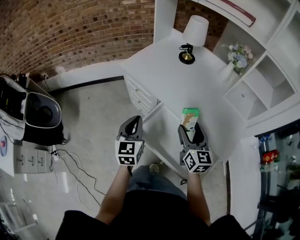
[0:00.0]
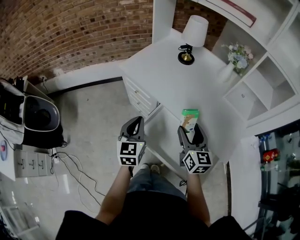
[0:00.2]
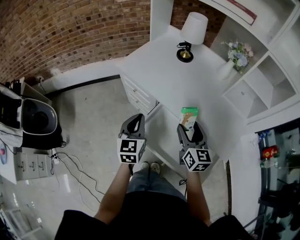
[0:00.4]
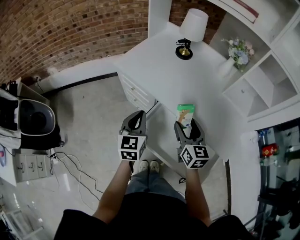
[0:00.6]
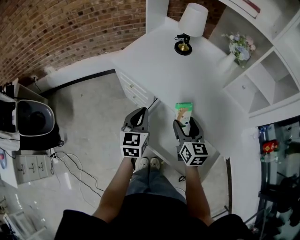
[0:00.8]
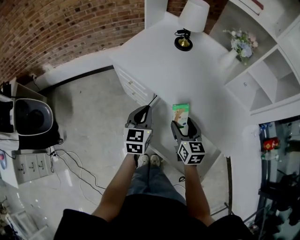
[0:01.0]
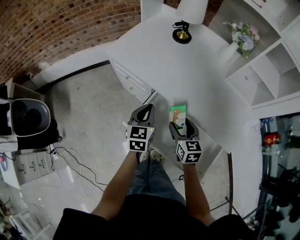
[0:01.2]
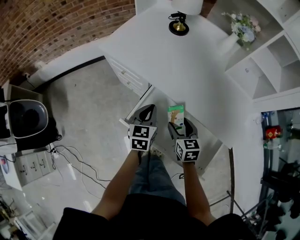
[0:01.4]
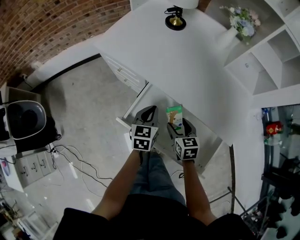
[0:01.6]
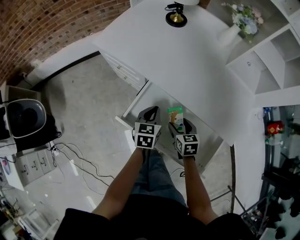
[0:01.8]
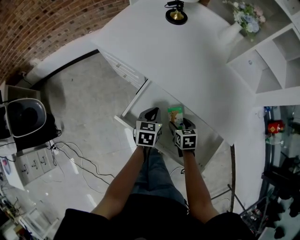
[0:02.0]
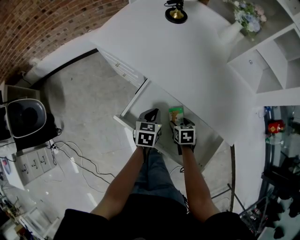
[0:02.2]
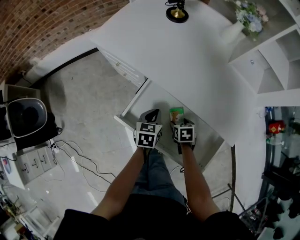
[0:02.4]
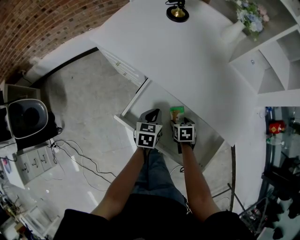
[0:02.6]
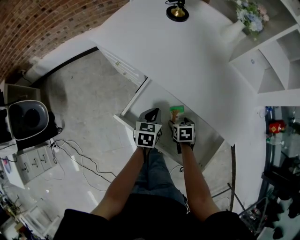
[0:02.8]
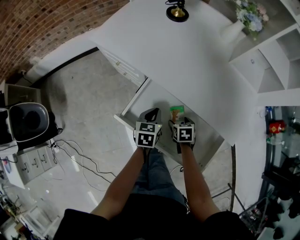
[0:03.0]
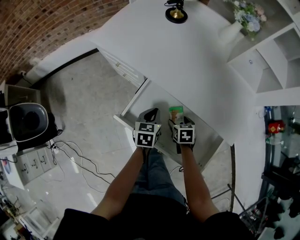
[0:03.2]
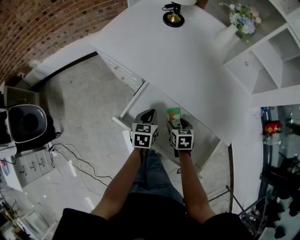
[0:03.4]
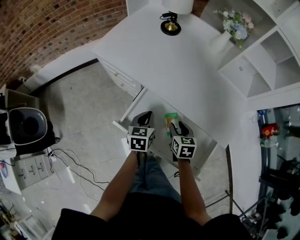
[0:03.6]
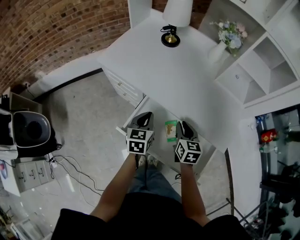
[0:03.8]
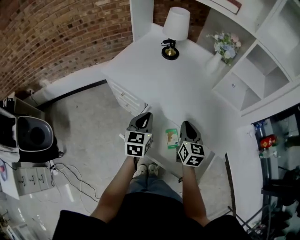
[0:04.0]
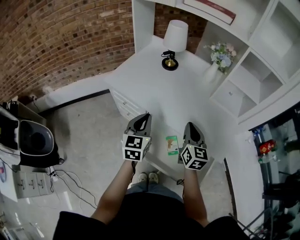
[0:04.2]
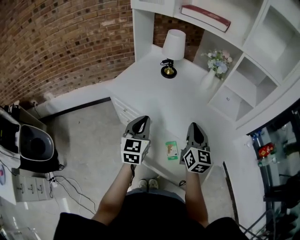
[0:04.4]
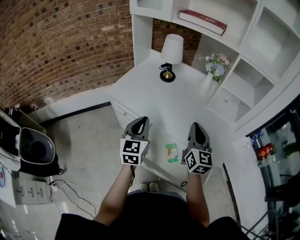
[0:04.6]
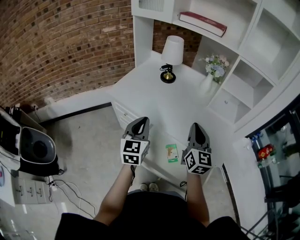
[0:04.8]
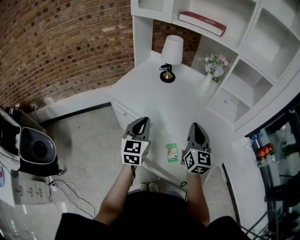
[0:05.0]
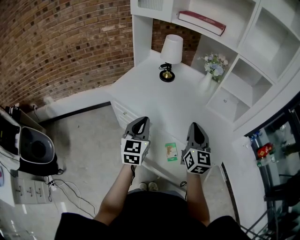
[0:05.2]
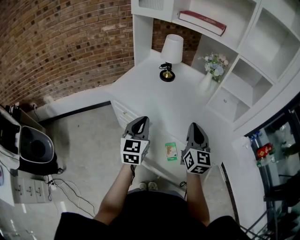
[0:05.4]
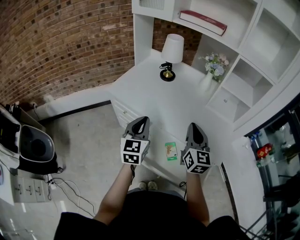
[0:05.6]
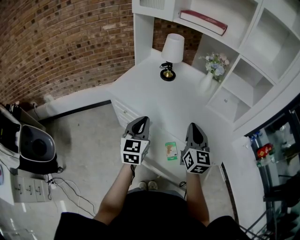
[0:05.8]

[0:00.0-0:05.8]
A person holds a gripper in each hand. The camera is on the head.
0:00.0 to 0:01.4: The right gripper shifts about 15 cm downward, and turns by about 30 degrees. The left gripper shifts approximately 20 cm downward, to the right and forward, and rotates approximately 20 degrees.
0:01.4 to 0:02.8: The right gripper shifts approximately 15 cm downward, and swivels some 30 degrees, while the left gripper moves downward, some 10 cm.
0:02.8 to 0:04.4: The two grippers go roughly 35 cm upward. The left gripper angles its fingers upward, by about 30 degrees. Meanwhile the right gripper angles its fingers upward, by some 60 degrees, and closes its fingers.
0:04.4 to 0:05.8: The grippers make only small movements.

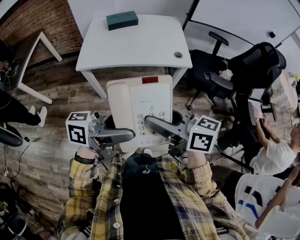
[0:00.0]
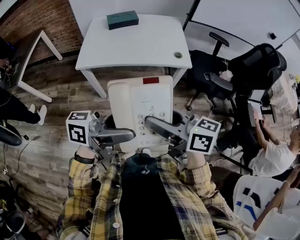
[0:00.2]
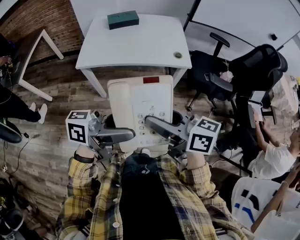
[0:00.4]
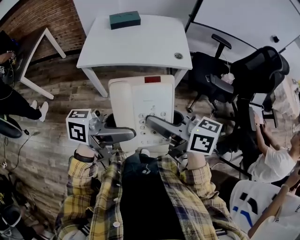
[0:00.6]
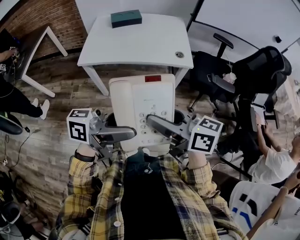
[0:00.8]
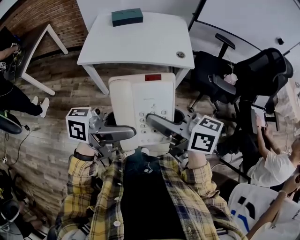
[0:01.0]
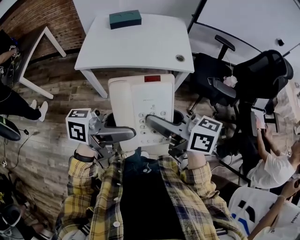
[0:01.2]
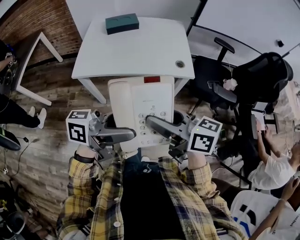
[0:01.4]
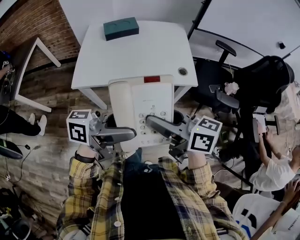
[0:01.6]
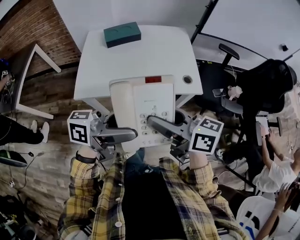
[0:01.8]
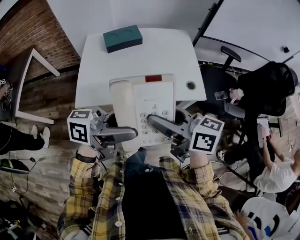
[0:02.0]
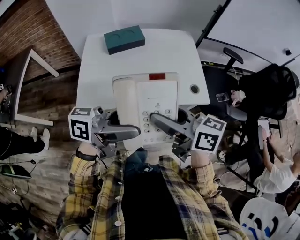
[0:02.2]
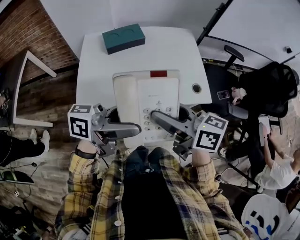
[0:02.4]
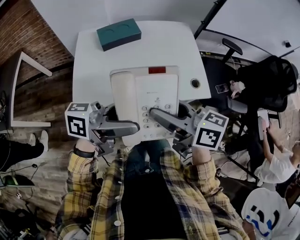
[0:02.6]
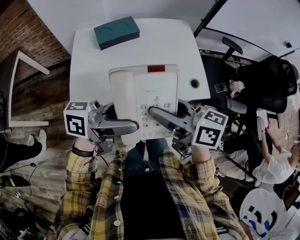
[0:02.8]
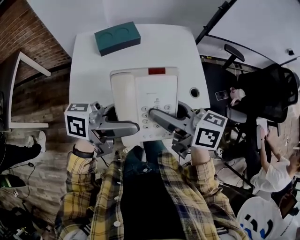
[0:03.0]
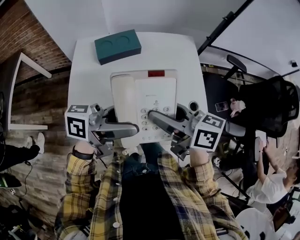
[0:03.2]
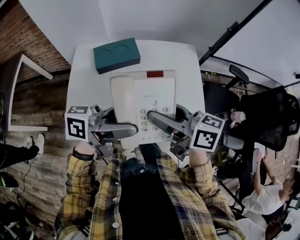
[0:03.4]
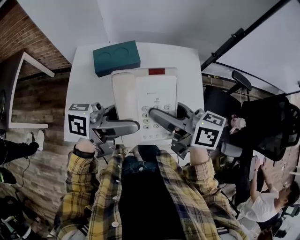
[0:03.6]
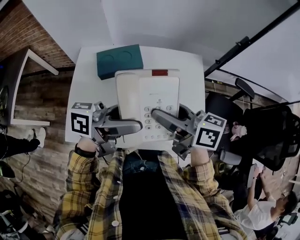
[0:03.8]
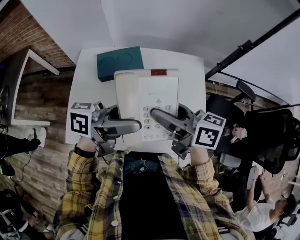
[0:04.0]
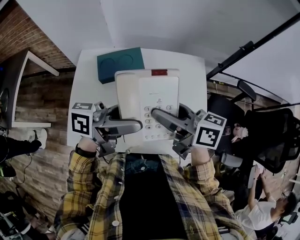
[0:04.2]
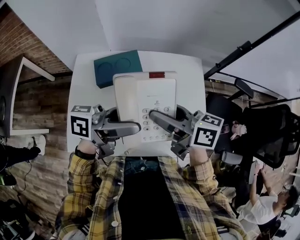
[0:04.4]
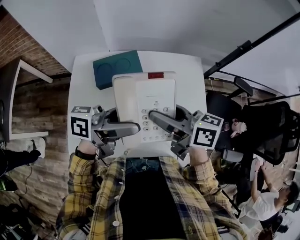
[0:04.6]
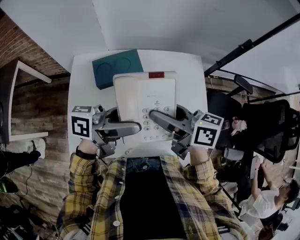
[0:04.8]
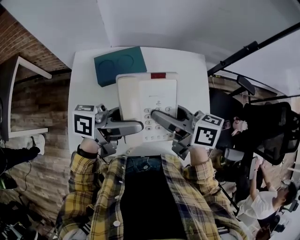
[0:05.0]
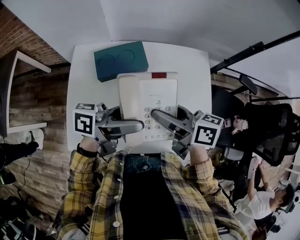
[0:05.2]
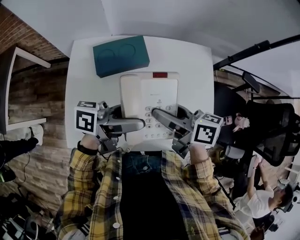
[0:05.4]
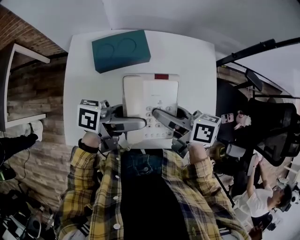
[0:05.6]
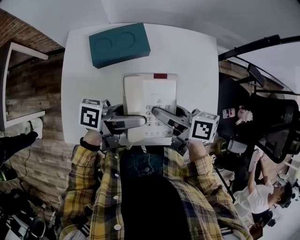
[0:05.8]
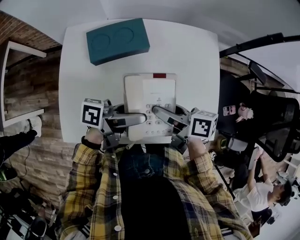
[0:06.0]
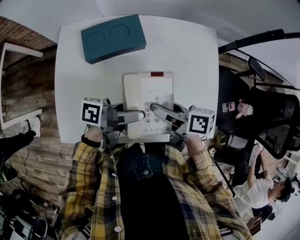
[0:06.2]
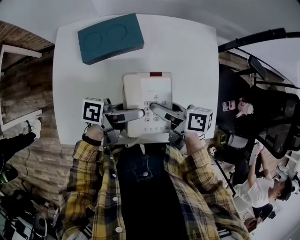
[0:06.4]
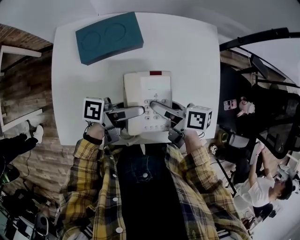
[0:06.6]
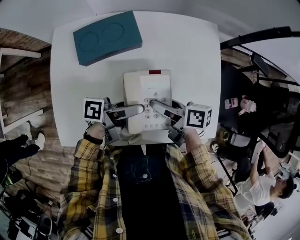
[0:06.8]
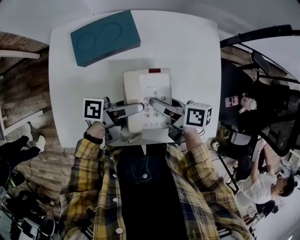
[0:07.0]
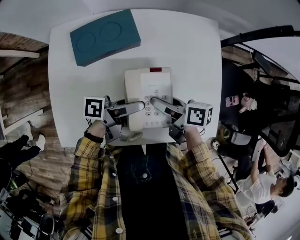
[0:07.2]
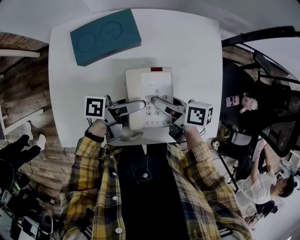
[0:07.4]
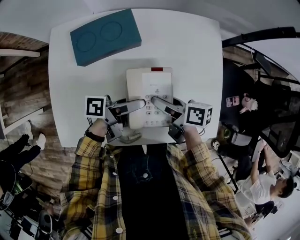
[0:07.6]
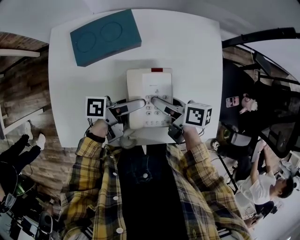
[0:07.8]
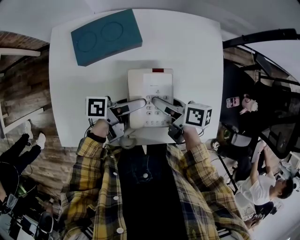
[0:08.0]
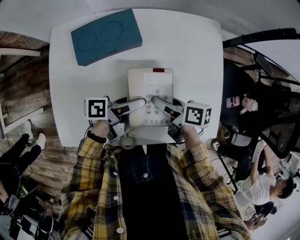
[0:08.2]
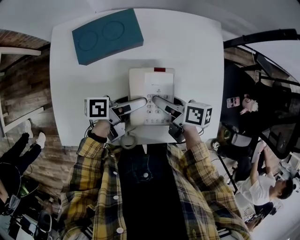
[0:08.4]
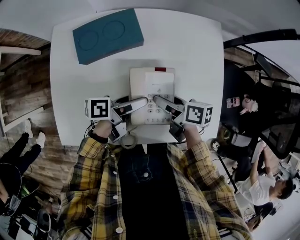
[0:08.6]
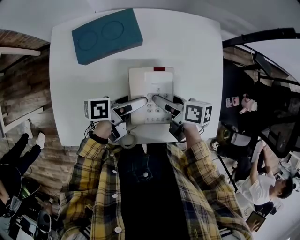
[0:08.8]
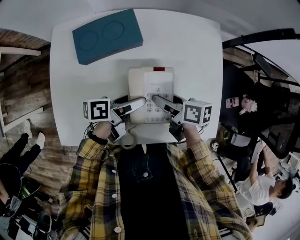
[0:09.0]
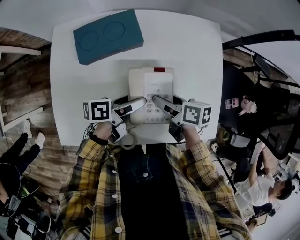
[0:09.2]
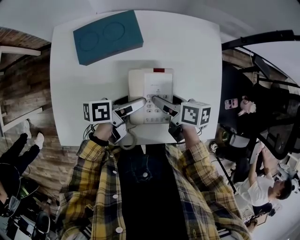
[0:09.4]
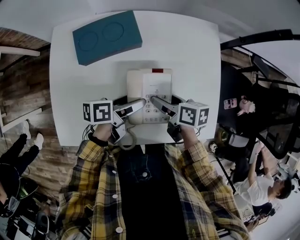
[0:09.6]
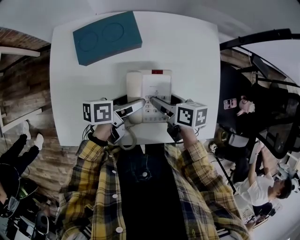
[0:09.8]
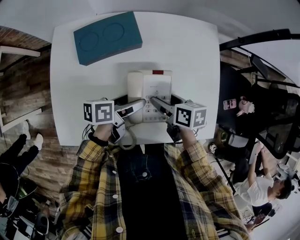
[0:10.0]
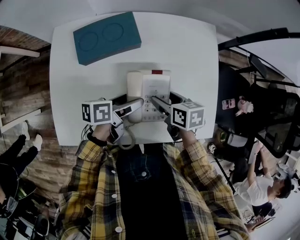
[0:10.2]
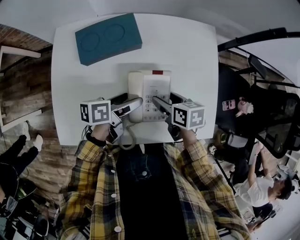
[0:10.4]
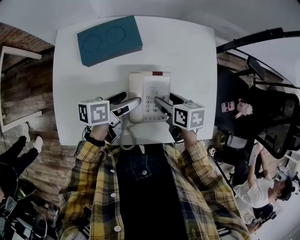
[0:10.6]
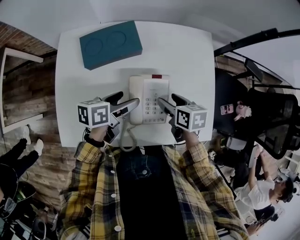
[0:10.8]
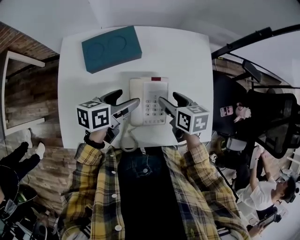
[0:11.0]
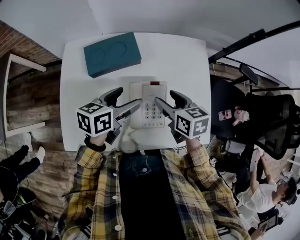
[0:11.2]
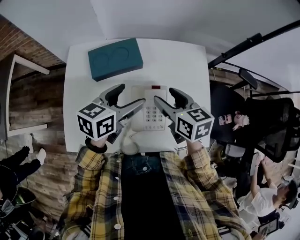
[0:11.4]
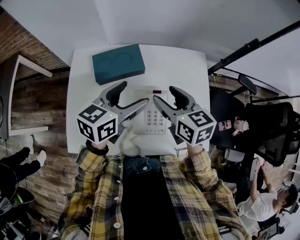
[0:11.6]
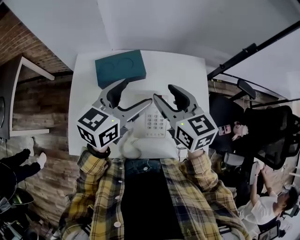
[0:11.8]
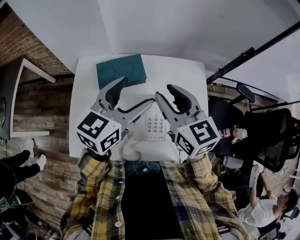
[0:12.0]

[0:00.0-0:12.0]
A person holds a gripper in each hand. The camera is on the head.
0:00.0 to 0:01.6: The left gripper changes place by some 15 cm. The right gripper changes place by about 15 cm.
0:01.6 to 0:03.0: The right gripper ends up roughly 20 cm from where it was. Meanwhile the left gripper changes place by approximately 20 cm.
0:03.0 to 0:04.4: The right gripper changes place by approximately 20 cm. The left gripper changes place by roughly 20 cm.
0:04.4 to 0:06.0: The grippers both shift downward by about 15 cm. The left gripper turns by approximately 20 degrees, while the right gripper changes its angle by roughly 20 degrees.
0:06.0 to 0:07.6: The grippers both shift downward by approximately 10 cm.
0:07.6 to 0:09.0: The grippers make only small movements.
0:09.0 to 0:10.4: The right gripper swivels about 20 degrees.
0:10.4 to 0:12.0: The grippers both shift upward by approximately 30 cm. The left gripper twists approximately 60 degrees clockwise, seen from behind. The right gripper tips its fingers upward by approximately 30 degrees, and closes up.

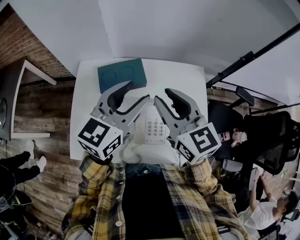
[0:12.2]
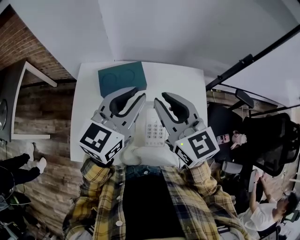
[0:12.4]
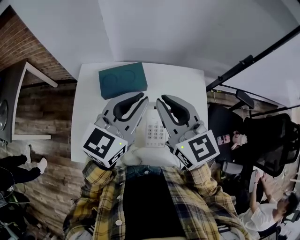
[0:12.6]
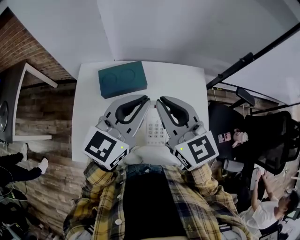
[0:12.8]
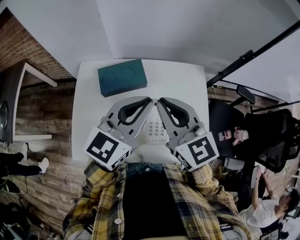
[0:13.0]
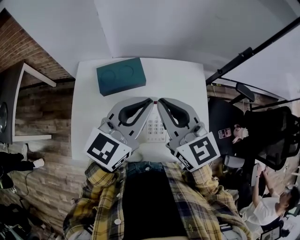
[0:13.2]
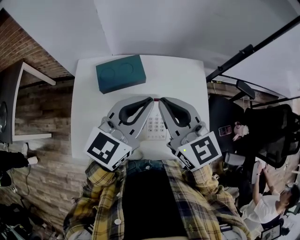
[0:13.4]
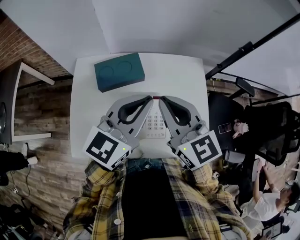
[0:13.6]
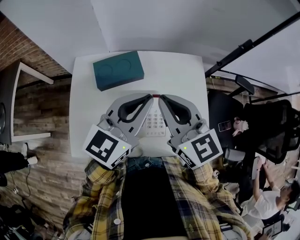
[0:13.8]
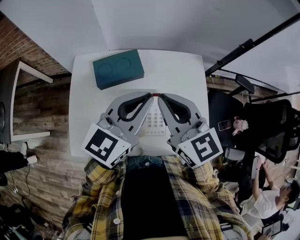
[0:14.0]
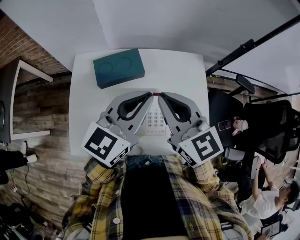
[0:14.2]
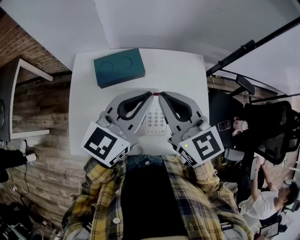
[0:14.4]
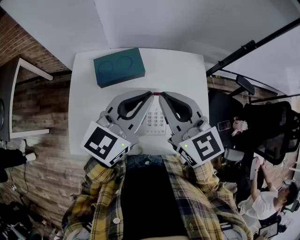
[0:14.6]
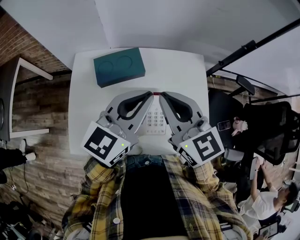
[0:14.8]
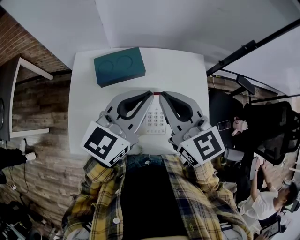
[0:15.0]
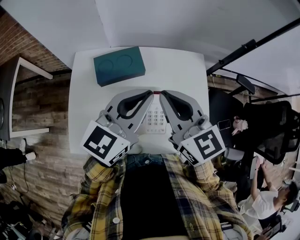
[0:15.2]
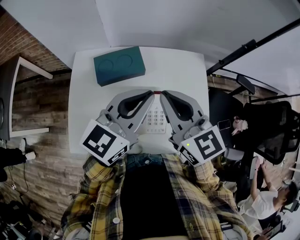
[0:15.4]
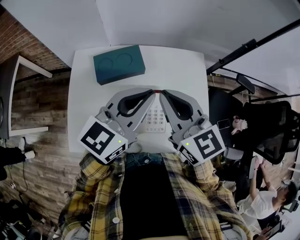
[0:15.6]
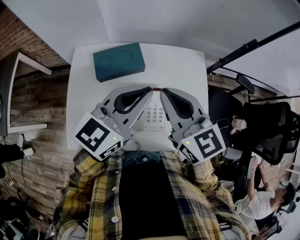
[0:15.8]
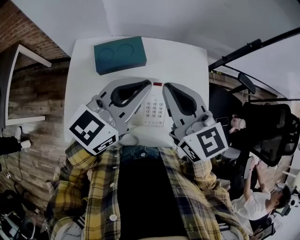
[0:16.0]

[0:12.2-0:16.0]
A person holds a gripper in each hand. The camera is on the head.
0:12.2 to 0:13.4: The right gripper closes its fingers; the left gripper closes up.
0:13.4 to 0:14.8: Neither gripper changes place.
0:14.8 to 0:16.0: There are only small adjustments of the grippers.

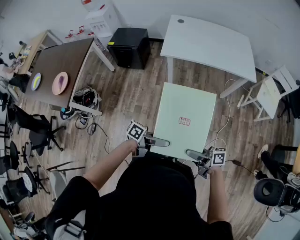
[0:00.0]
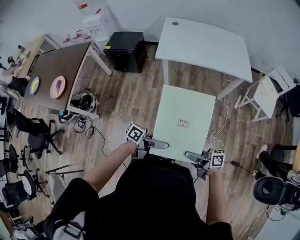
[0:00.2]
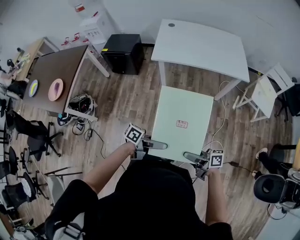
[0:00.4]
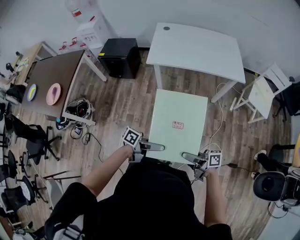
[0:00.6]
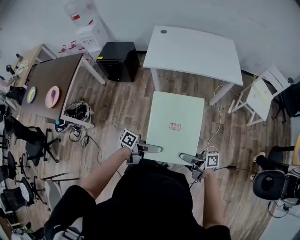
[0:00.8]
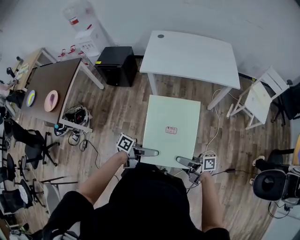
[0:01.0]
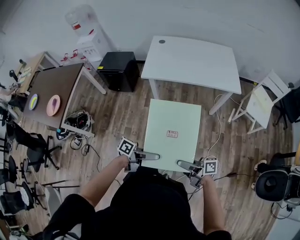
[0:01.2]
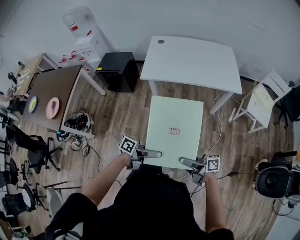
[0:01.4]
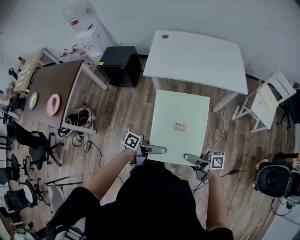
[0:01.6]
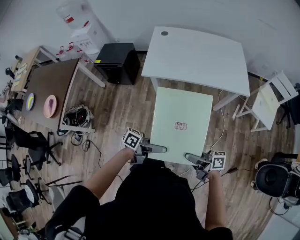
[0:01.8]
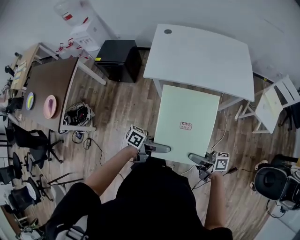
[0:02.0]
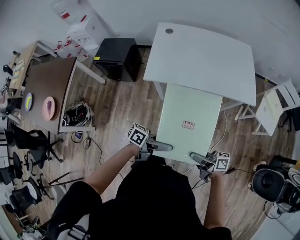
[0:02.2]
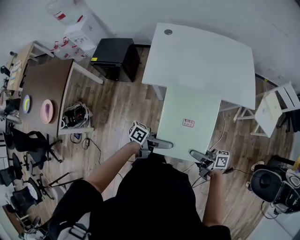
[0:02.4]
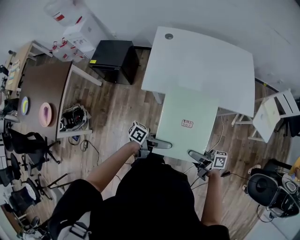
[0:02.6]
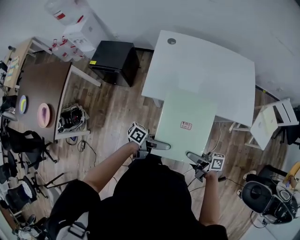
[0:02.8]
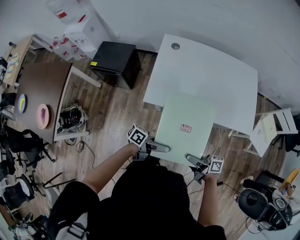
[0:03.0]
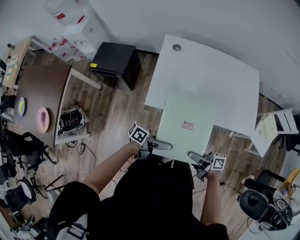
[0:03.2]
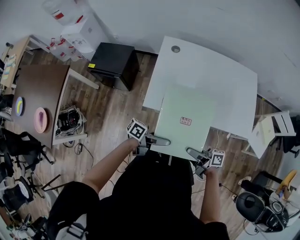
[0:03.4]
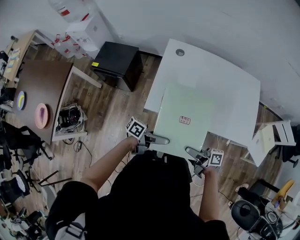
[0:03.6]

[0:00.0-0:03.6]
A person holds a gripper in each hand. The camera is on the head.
0:00.0 to 0:01.8: The right gripper moves about 20 cm.
0:01.8 to 0:03.6: The right gripper ends up about 35 cm from where it was.
